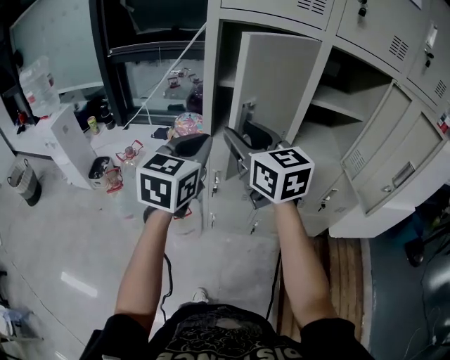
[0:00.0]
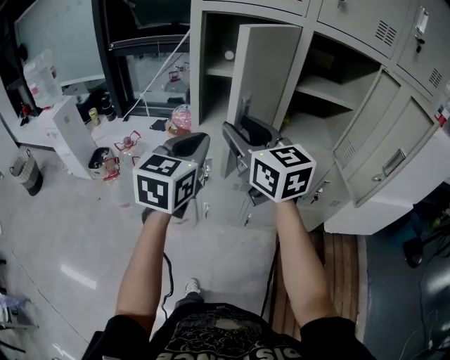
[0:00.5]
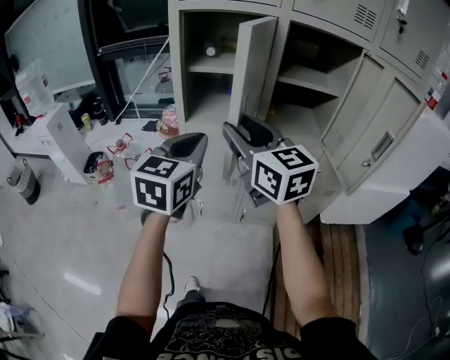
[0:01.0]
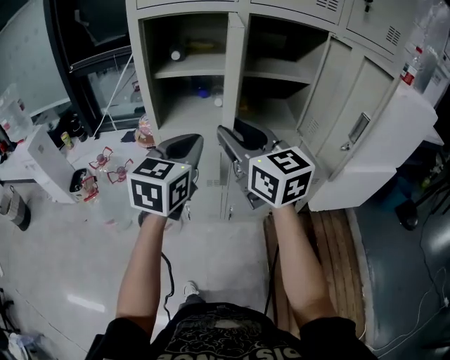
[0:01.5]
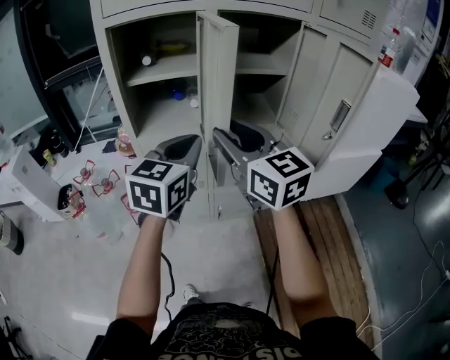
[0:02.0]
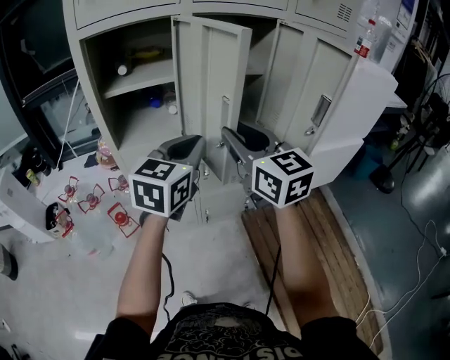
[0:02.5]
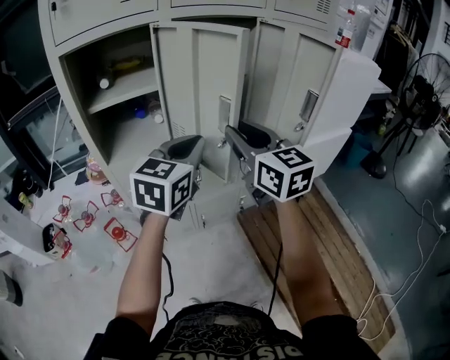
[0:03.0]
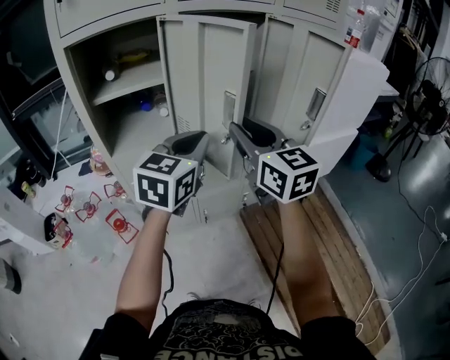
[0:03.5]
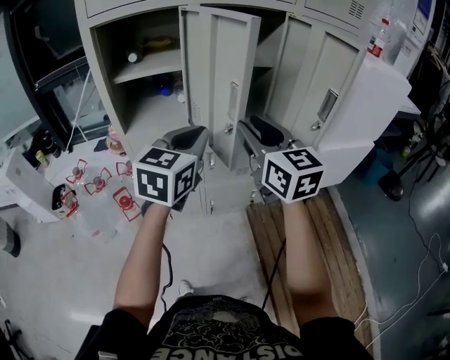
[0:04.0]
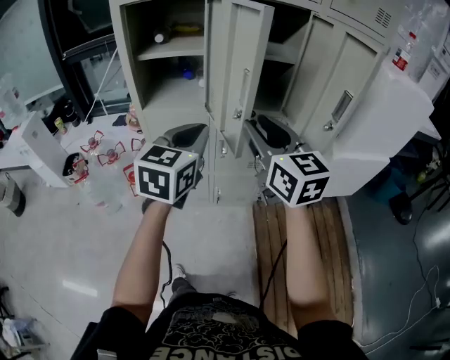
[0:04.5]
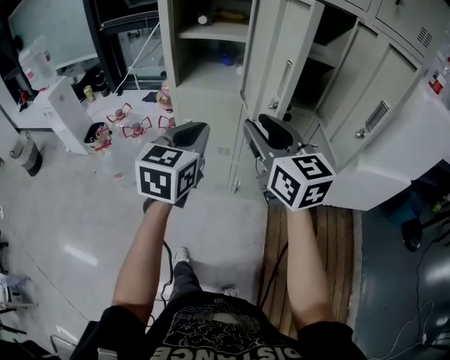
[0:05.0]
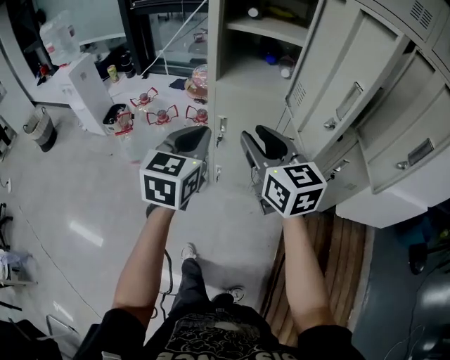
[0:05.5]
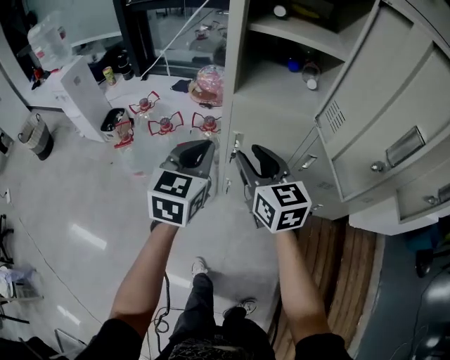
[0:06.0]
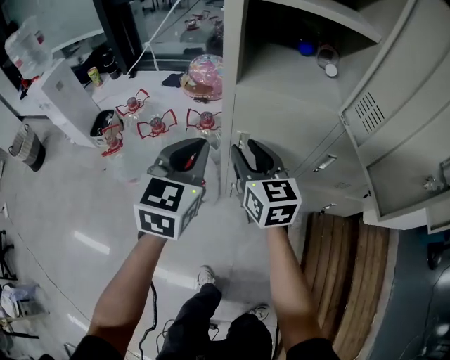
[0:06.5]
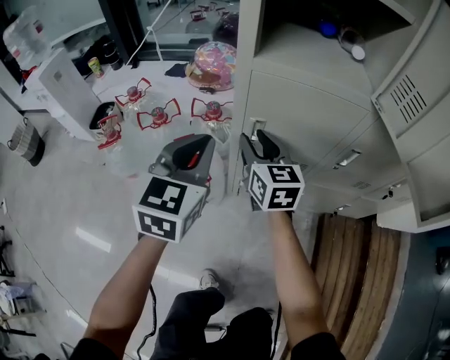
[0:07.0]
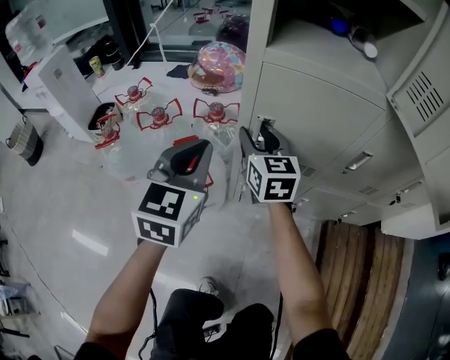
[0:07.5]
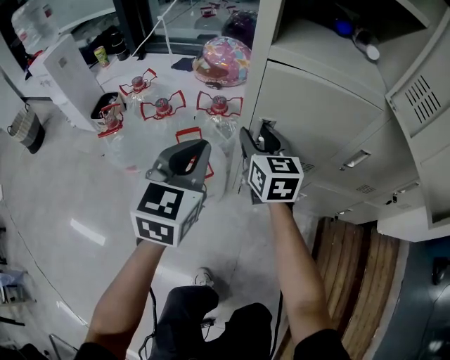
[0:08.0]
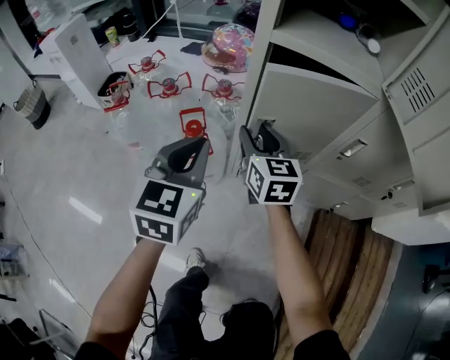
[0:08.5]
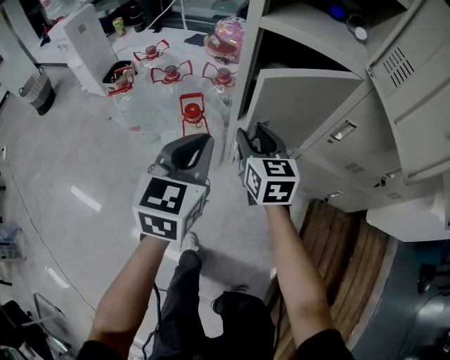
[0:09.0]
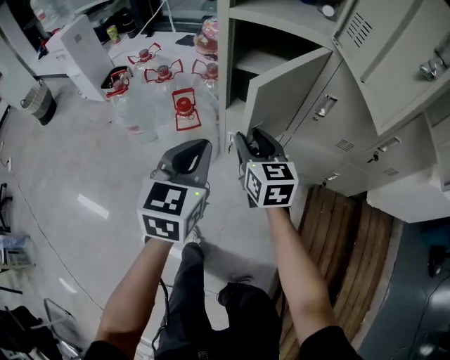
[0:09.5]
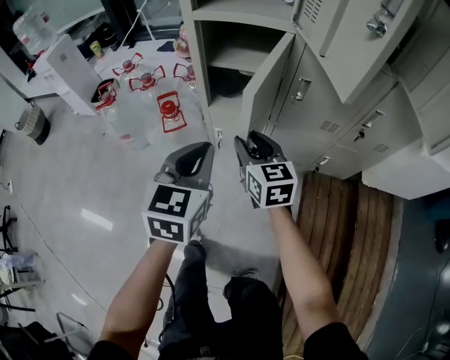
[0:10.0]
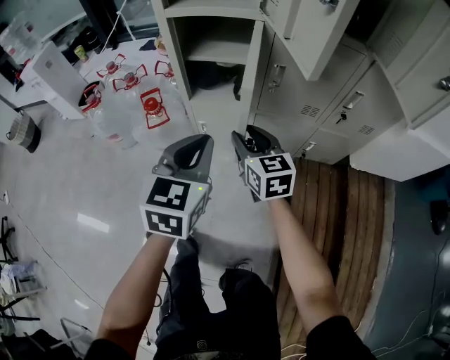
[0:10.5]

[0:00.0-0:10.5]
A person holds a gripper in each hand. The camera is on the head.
0:00.0 to 0:02.0: The left gripper moves to the right, some 20 cm. Meanwhile the right gripper shifts approximately 20 cm to the right and backward.
0:02.0 to 0:04.0: The right gripper is displaced to the right by approximately 10 cm, while the left gripper heads to the right, covering some 5 cm.
0:04.0 to 0:06.5: The right gripper shifts by approximately 50 cm, and turns by roughly 20 degrees. The left gripper ends up roughly 40 cm from where it was, and swivels roughly 30 degrees.
0:06.5 to 0:08.5: The right gripper is displaced downward by about 10 cm, while the left gripper heads downward and backward, covering some 10 cm.
0:08.5 to 0:10.5: The right gripper travels backward and to the right by roughly 25 cm, while the left gripper moves to the right and backward, about 25 cm.

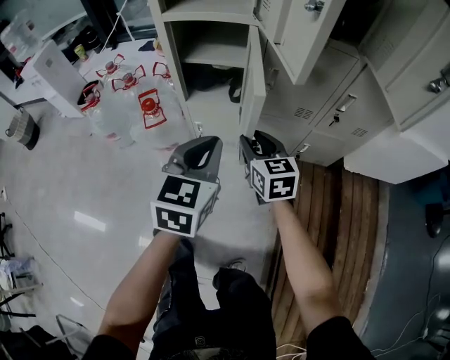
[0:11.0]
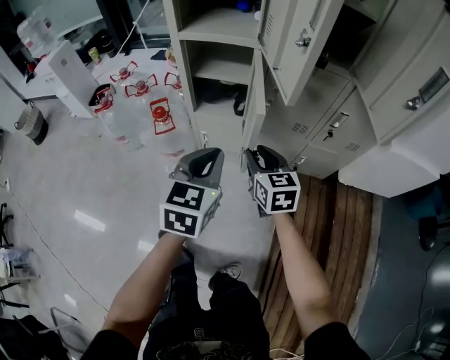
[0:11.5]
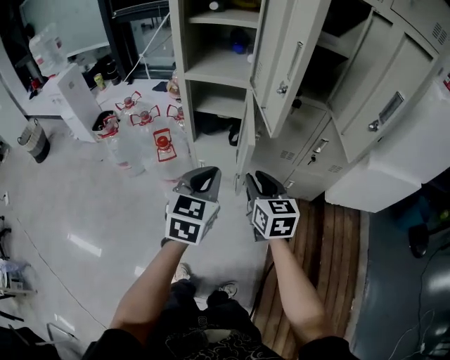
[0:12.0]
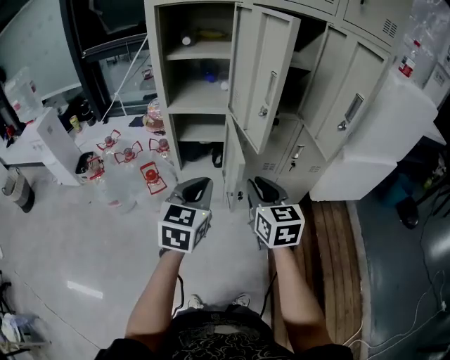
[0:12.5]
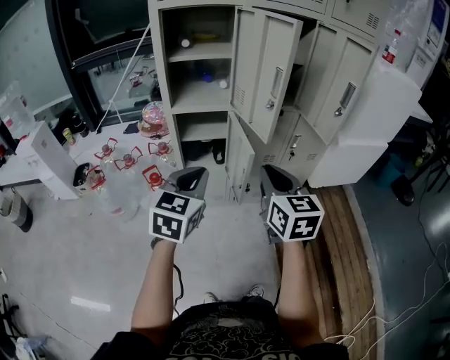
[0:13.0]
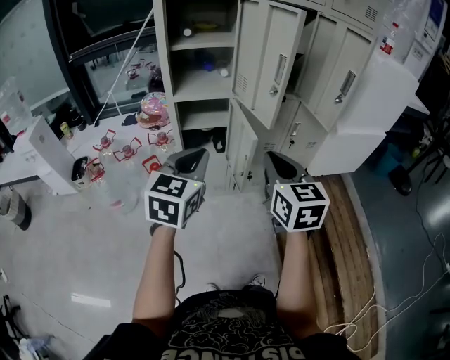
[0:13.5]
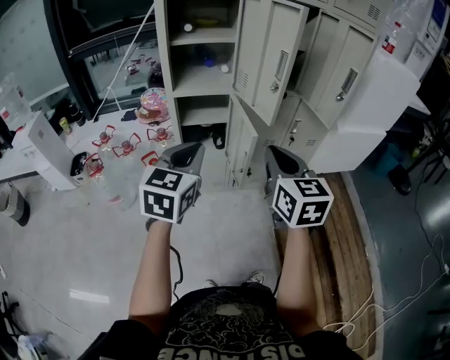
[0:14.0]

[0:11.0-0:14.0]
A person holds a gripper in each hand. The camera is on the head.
0:11.0 to 0:12.5: The right gripper travels upward and backward by roughly 25 cm; the left gripper shifts approximately 15 cm upward.
0:12.5 to 0:14.0: The right gripper travels upward and backward by roughly 10 cm. The left gripper goes roughly 10 cm to the left and upward.

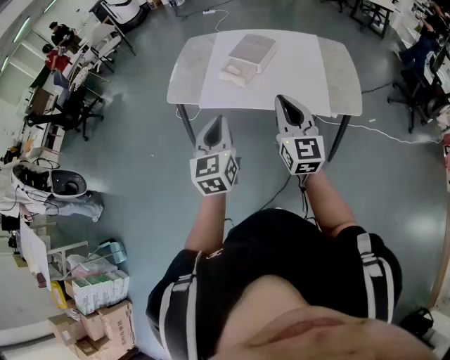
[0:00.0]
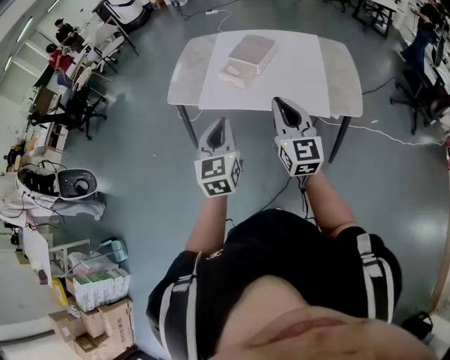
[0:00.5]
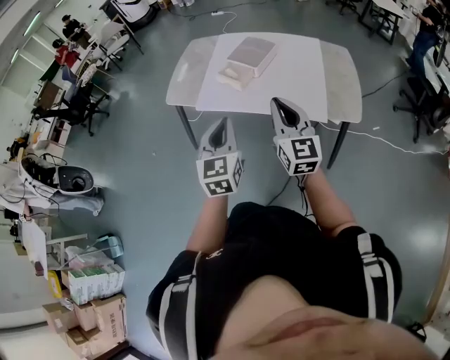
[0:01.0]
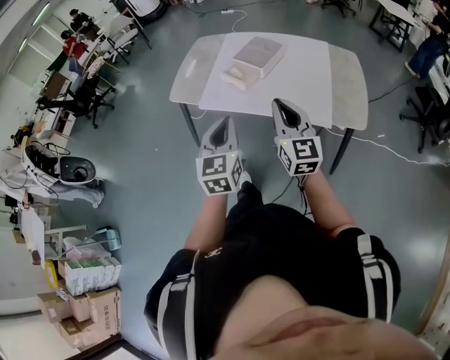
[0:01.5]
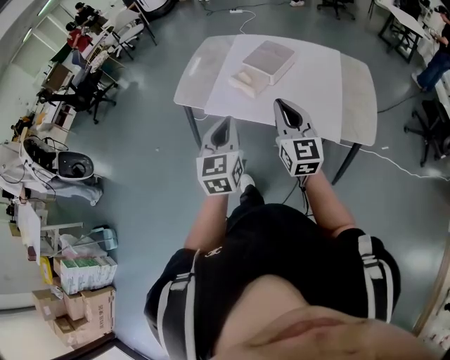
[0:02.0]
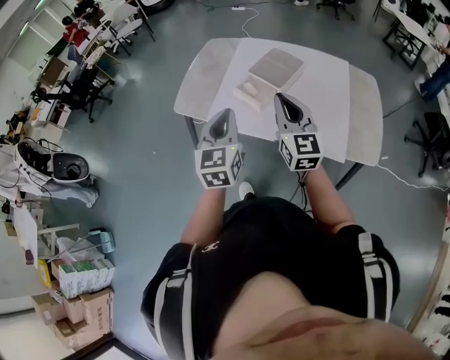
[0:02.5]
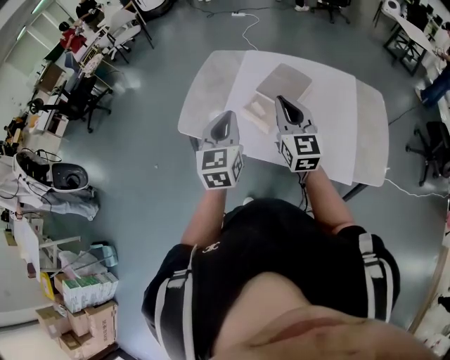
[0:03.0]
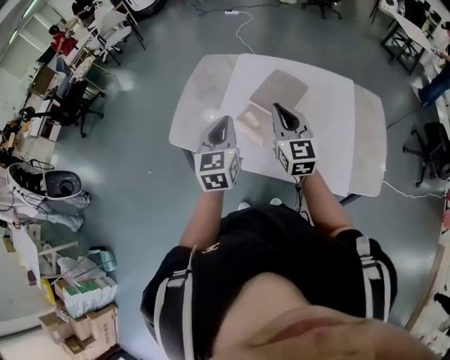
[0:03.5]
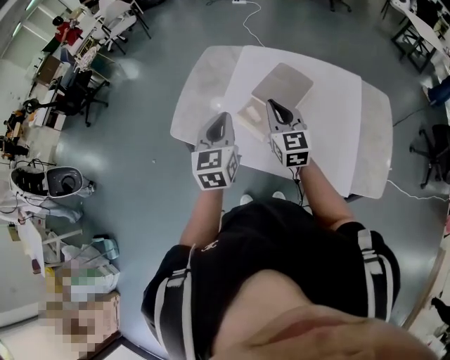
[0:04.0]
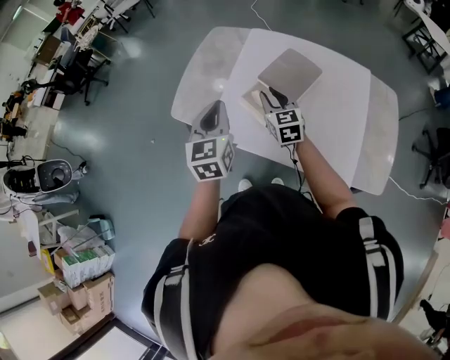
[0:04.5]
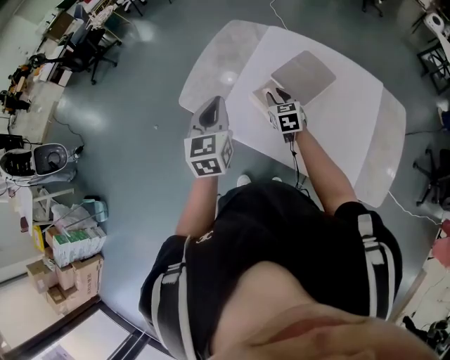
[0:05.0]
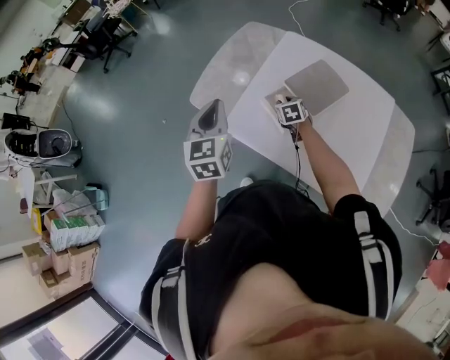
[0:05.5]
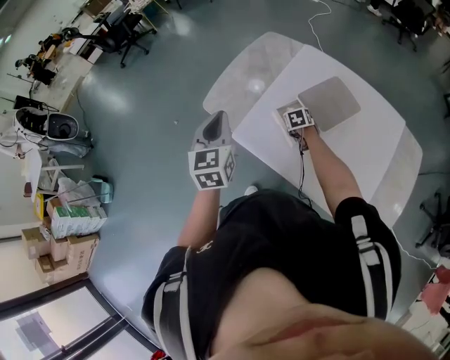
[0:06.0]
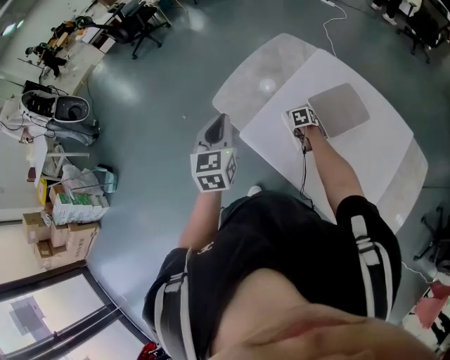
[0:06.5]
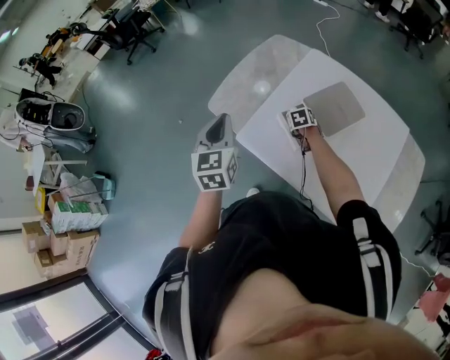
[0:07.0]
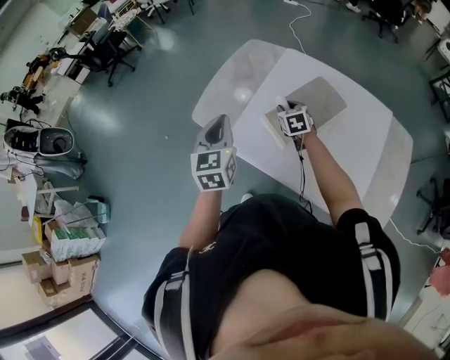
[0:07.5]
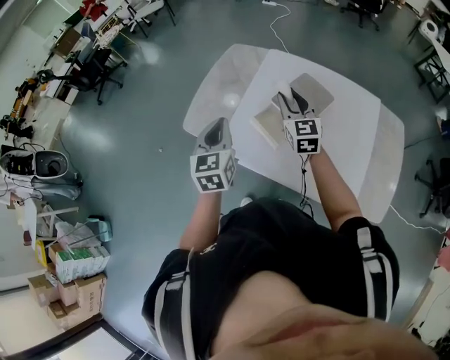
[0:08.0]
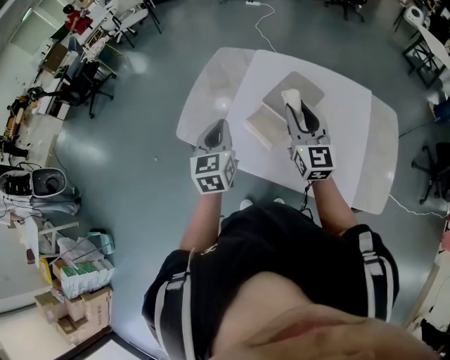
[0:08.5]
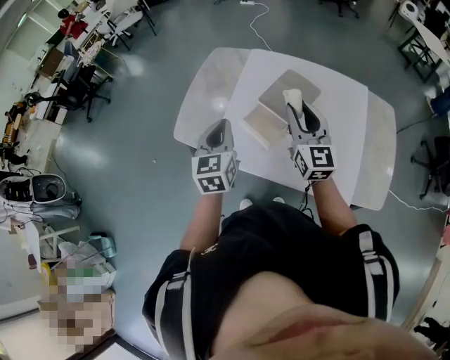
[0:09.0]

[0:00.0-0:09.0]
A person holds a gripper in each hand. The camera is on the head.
0:00.0 to 0:02.0: The grippers both shift forward by approximately 10 cm.
0:02.0 to 0:04.5: The two grippers go some 30 cm forward. The right gripper changes its angle by about 30 degrees.
0:04.5 to 0:07.0: The right gripper travels downward and forward by about 25 cm, and angles its fingers downward, by approximately 40 degrees, while the left gripper goes some 10 cm to the left.
0:07.0 to 0:09.0: The left gripper is displaced to the right by approximately 10 cm, and rotates approximately 20 degrees, while the right gripper heads upward and backward, covering some 35 cm, and tips its fingers upward by roughly 60 degrees.

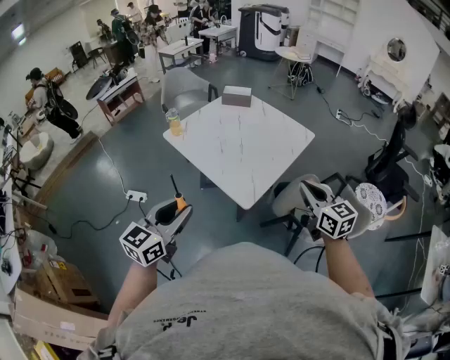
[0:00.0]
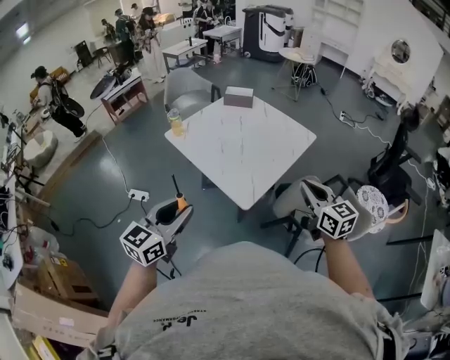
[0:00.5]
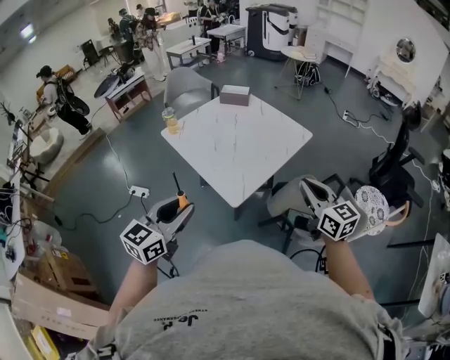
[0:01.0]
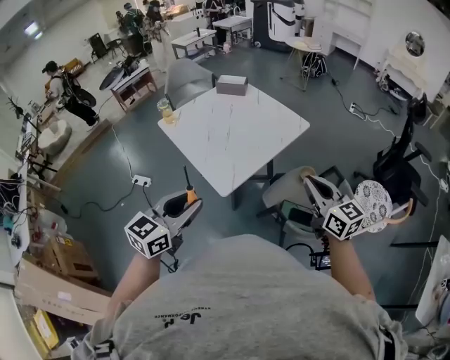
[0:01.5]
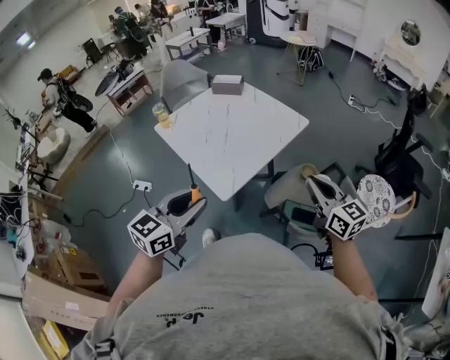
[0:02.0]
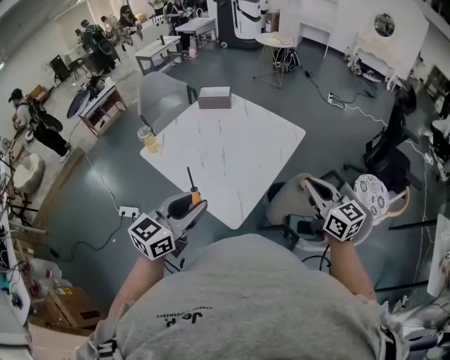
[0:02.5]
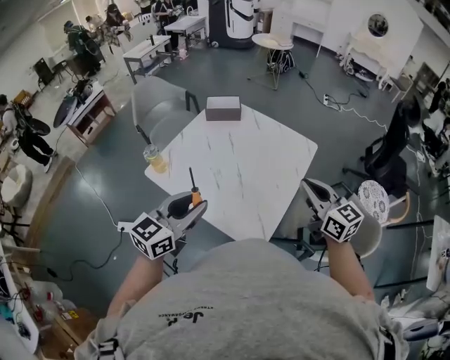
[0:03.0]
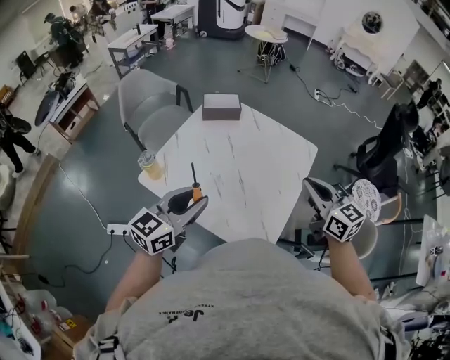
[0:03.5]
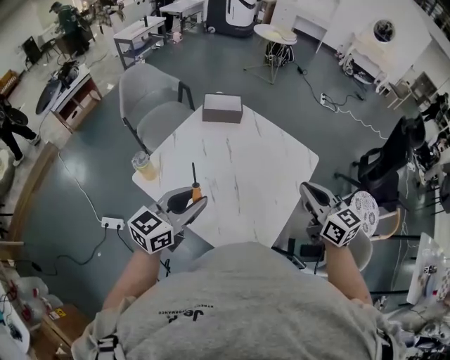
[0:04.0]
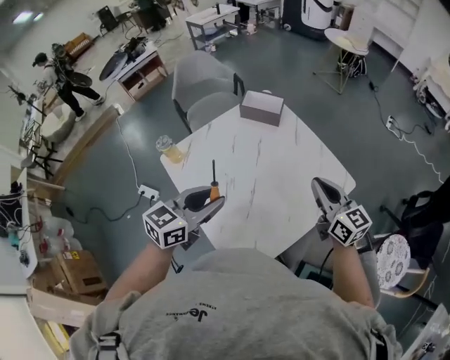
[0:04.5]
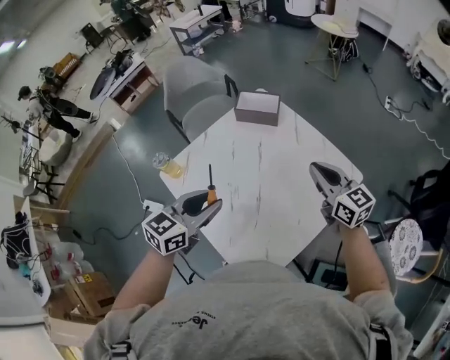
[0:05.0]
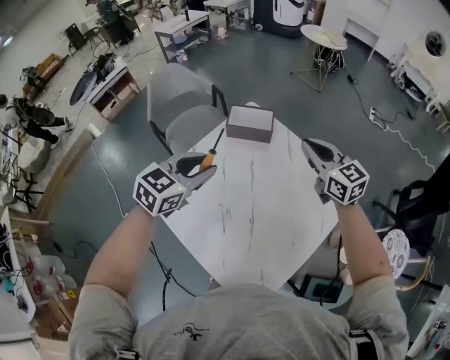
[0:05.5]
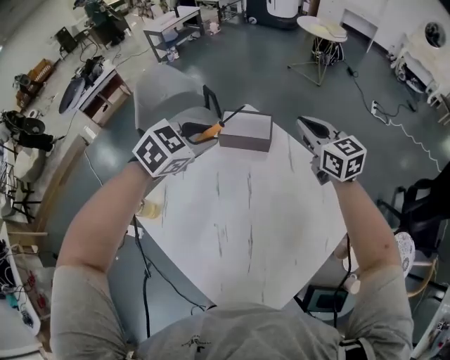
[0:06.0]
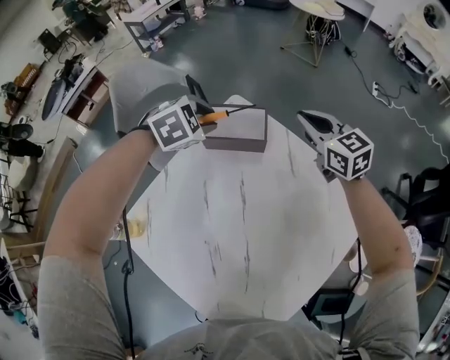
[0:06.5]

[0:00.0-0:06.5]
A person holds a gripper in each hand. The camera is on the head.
0:00.0 to 0:02.0: The grippers both shift to the right by about 15 cm.
0:02.0 to 0:04.5: The two grippers go some 40 cm forward and to the left.
0:04.5 to 0:06.5: The two grippers go about 40 cm forward. The left gripper angles its fingers downward, by some 40 degrees.
